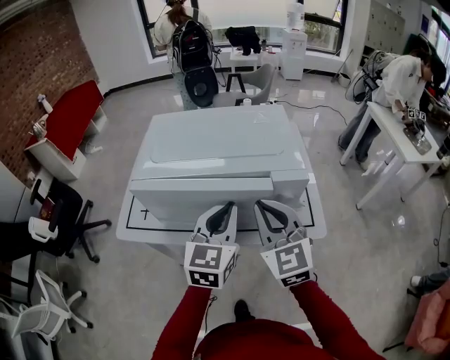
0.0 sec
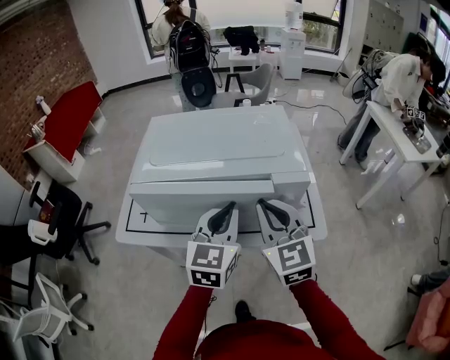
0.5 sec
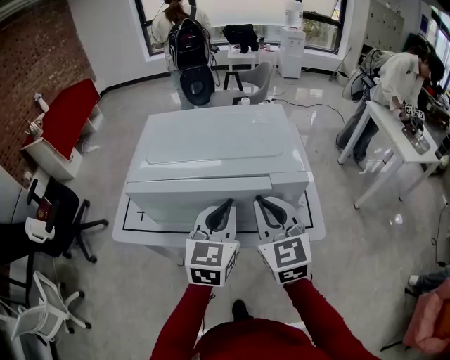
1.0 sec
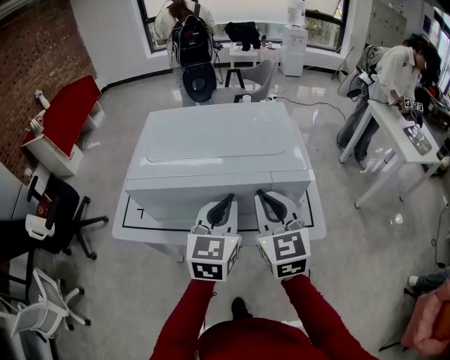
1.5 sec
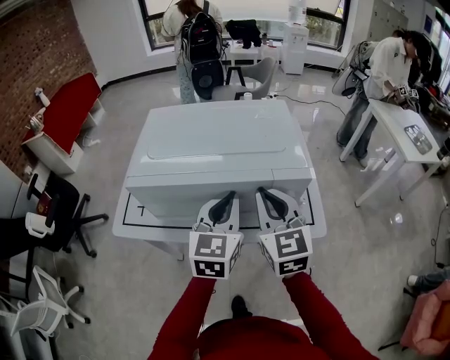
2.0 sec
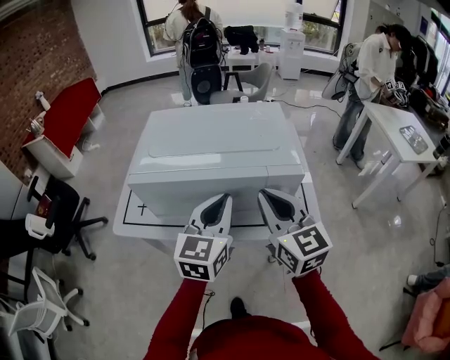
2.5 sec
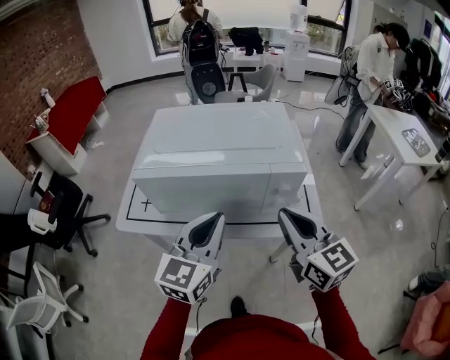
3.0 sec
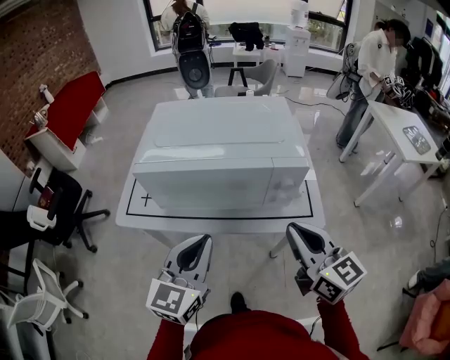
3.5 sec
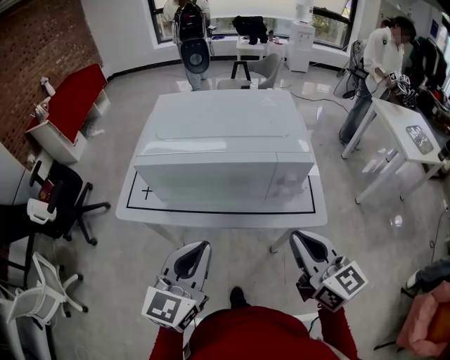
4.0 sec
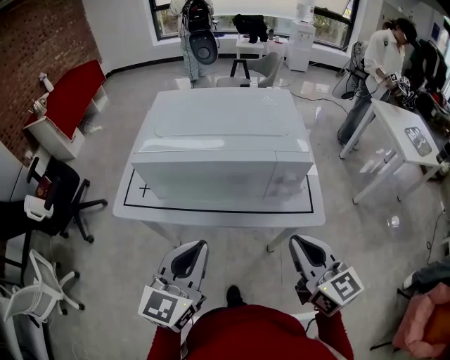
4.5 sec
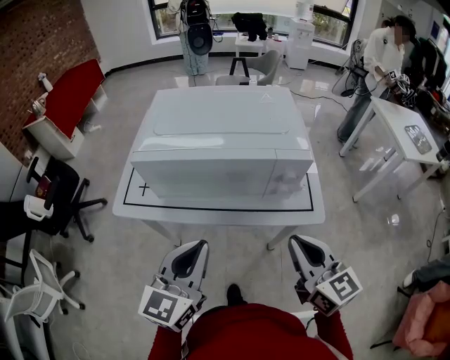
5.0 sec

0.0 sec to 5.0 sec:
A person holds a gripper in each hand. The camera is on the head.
0.0 sec to 2.5 sec: The grippers make only small movements.
2.5 sec to 5.0 sec: The left gripper goes approximately 15 cm backward and to the left. The right gripper is displaced backward by about 15 cm.

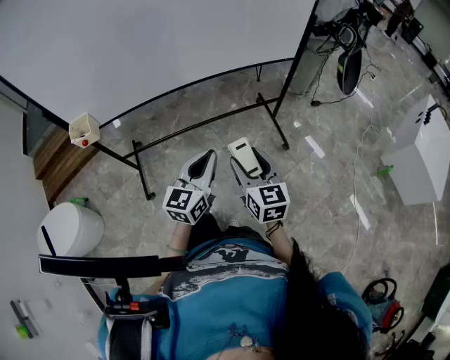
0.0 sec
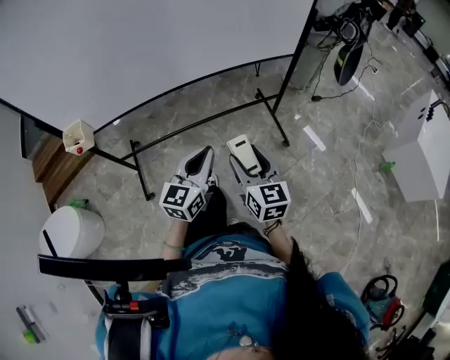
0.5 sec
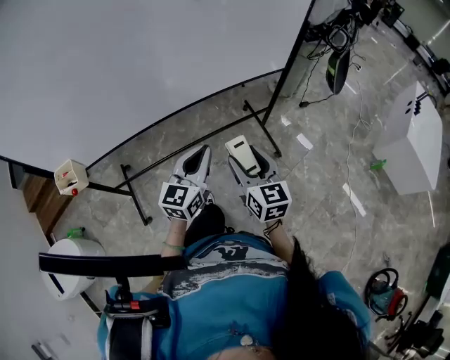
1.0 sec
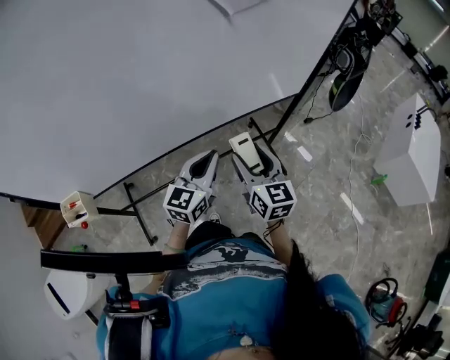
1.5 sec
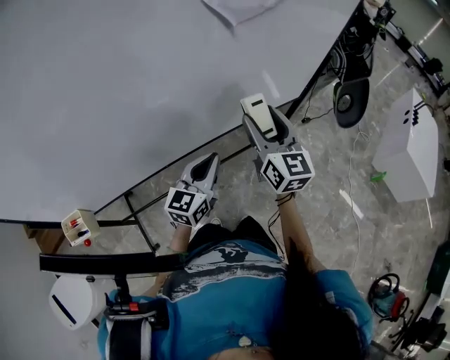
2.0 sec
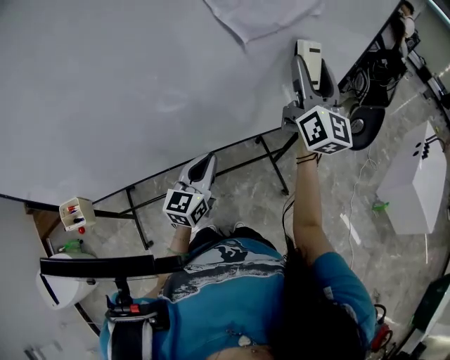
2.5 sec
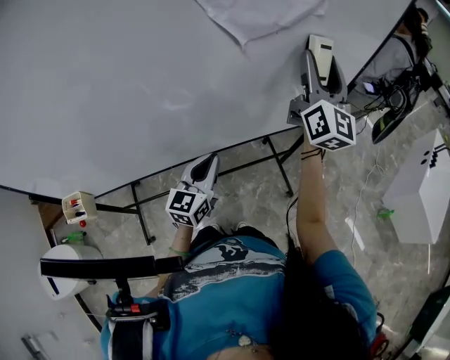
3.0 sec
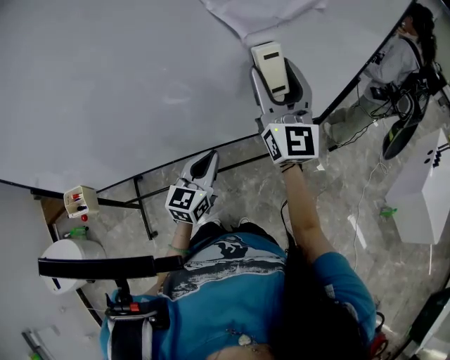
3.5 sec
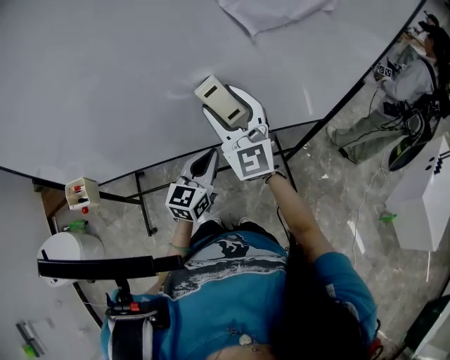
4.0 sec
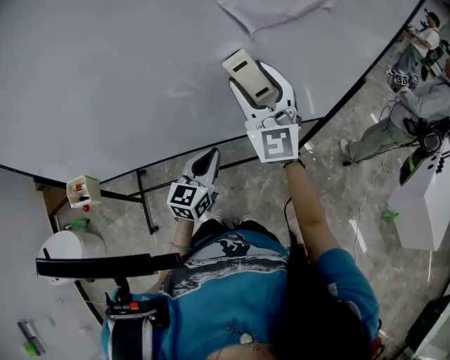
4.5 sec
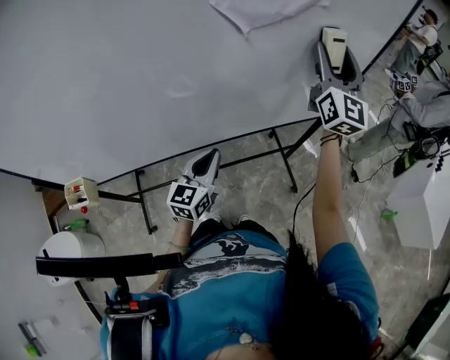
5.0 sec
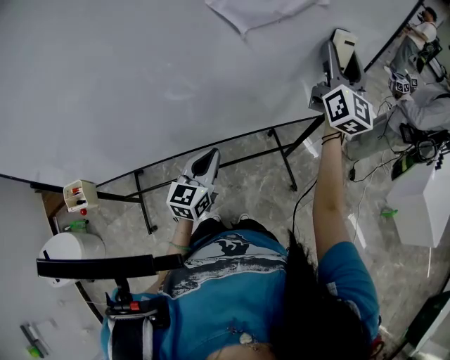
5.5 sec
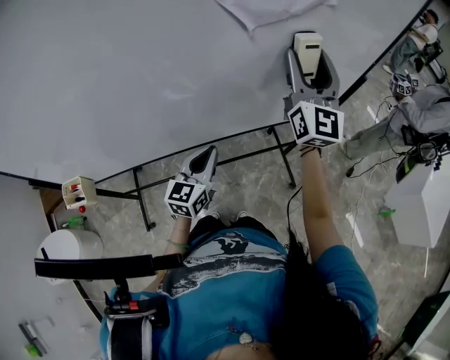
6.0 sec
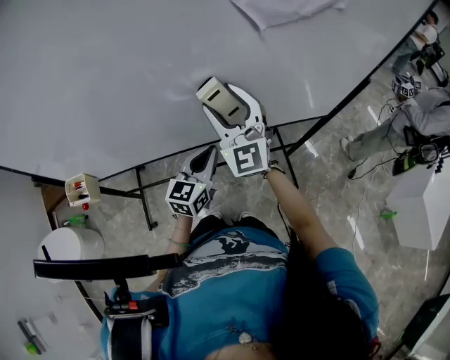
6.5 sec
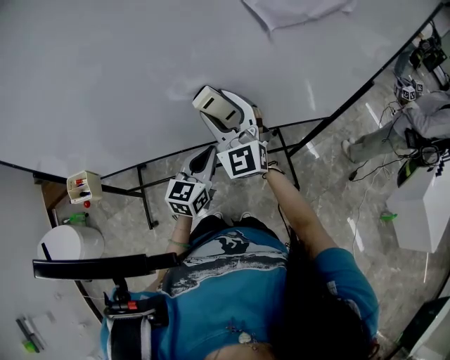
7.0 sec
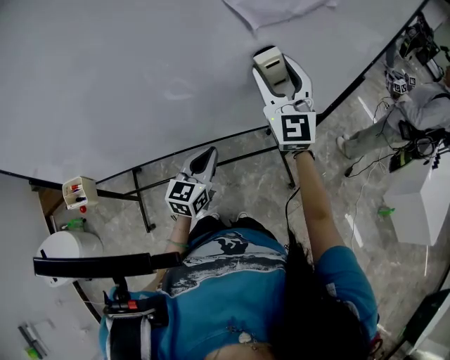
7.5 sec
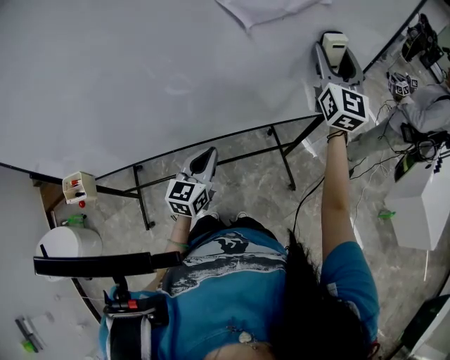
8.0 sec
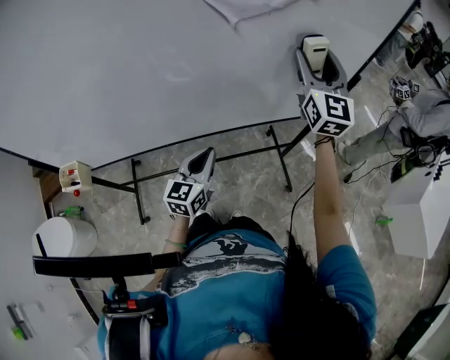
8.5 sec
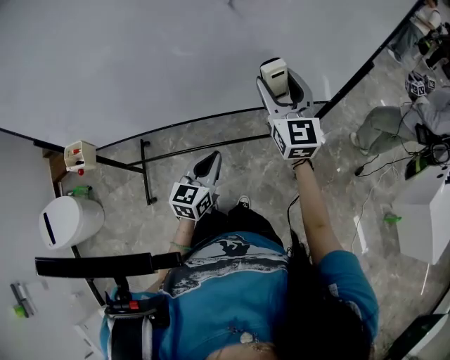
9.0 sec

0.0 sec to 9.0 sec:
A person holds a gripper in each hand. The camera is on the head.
0.0 sec to 2.0 sec: Both grippers travel together forward, approximately 35 cm.
2.0 sec to 4.5 sec: The right gripper swings left and right, approximately 25 cm each way, with 2 reversals, and rotates approximately 40 degrees.
4.5 sec to 7.0 sec: The right gripper is displaced downward by roughly 10 cm, and reaches approximately 25 cm to the right, then returns.
7.0 sec to 9.0 sec: The right gripper travels to the right by roughly 20 cm, and changes its angle by roughly 30 degrees. The left gripper heads backward and to the right, covering some 10 cm.

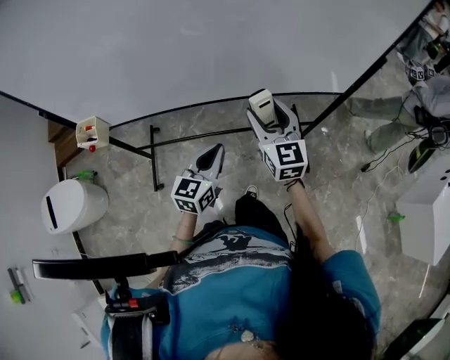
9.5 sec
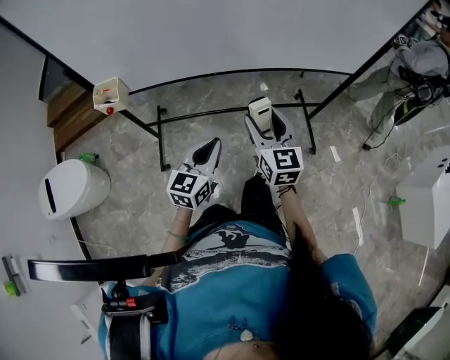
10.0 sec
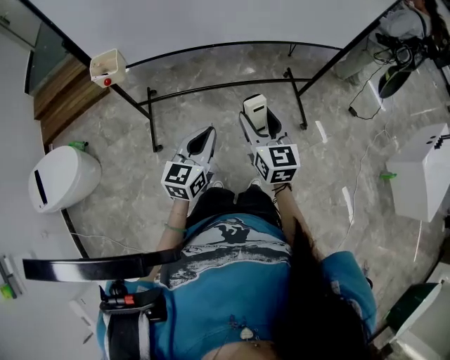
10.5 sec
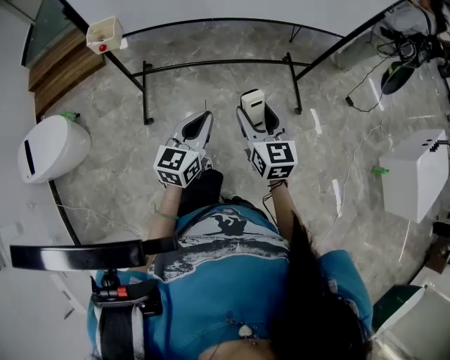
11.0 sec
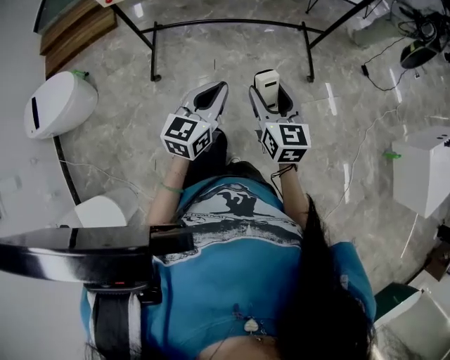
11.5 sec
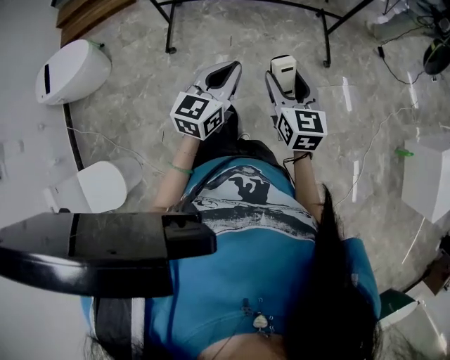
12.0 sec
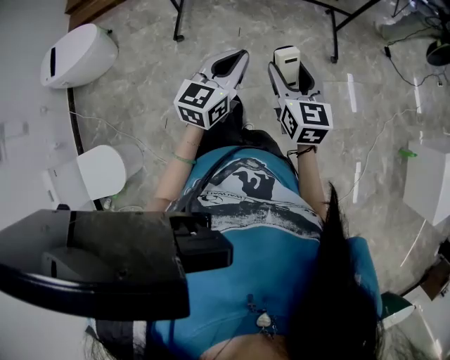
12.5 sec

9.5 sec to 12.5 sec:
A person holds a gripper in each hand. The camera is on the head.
9.5 sec to 11.0 sec: The right gripper travels backward by approximately 35 cm. The left gripper heads backward and to the left, covering some 30 cm.
11.0 sec to 12.5 sec: Both grippers travel together backward, roughly 25 cm.

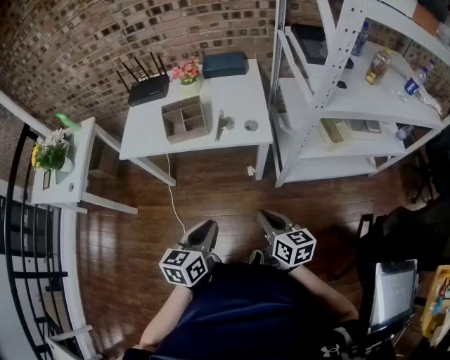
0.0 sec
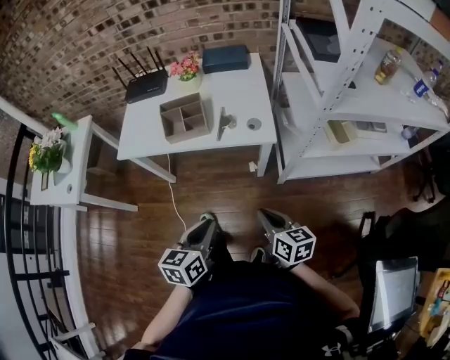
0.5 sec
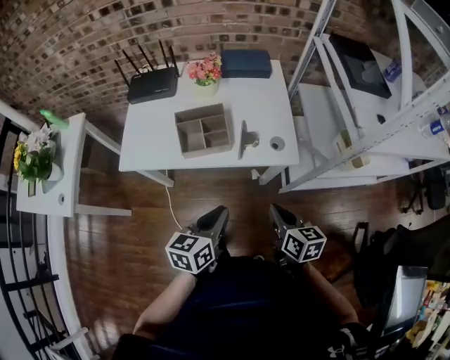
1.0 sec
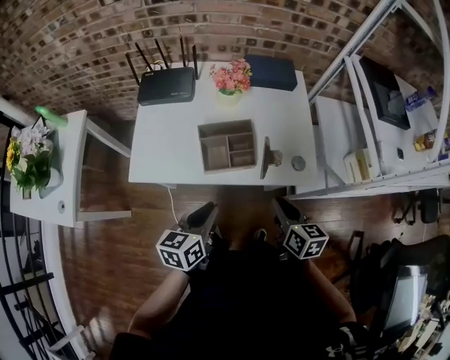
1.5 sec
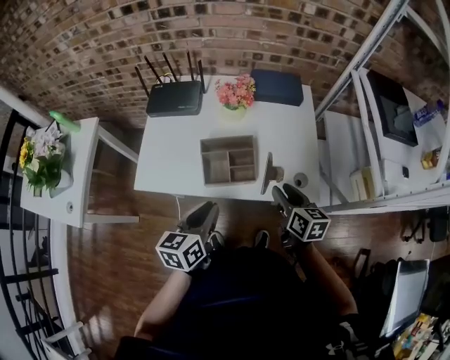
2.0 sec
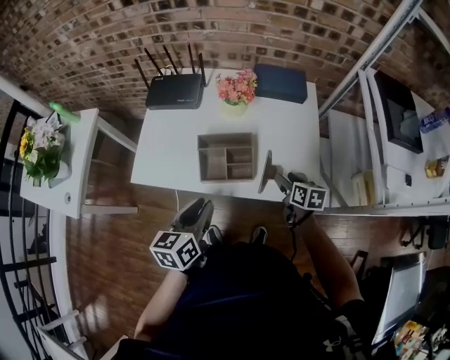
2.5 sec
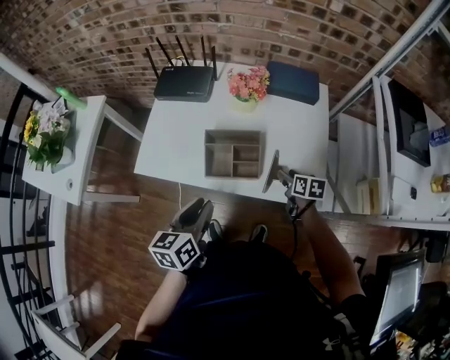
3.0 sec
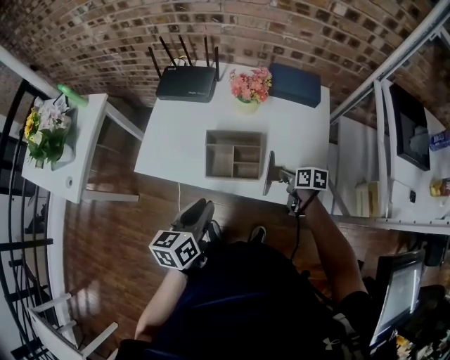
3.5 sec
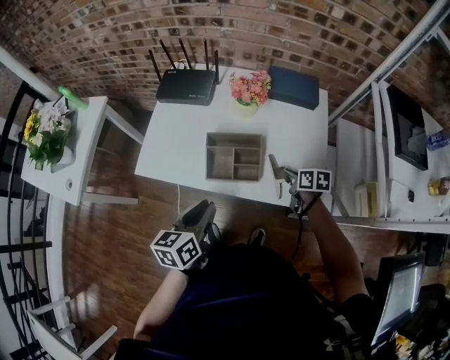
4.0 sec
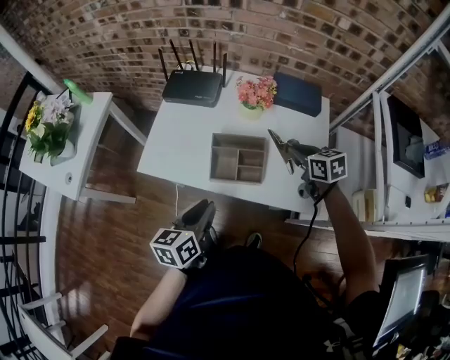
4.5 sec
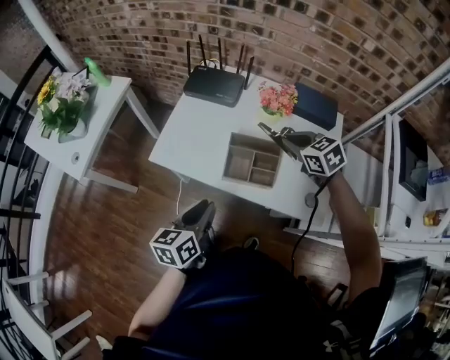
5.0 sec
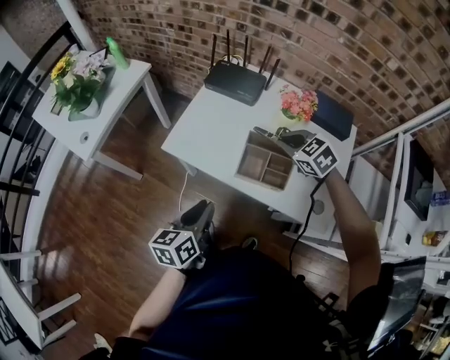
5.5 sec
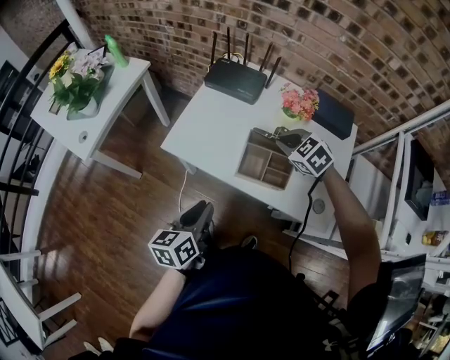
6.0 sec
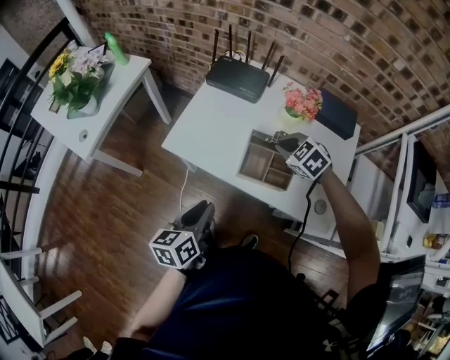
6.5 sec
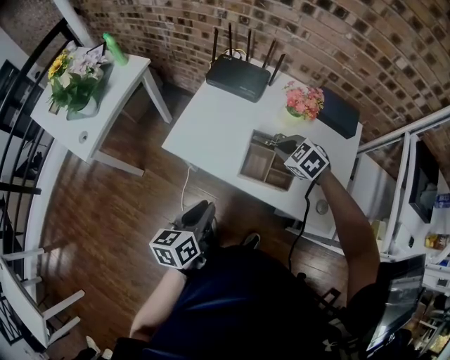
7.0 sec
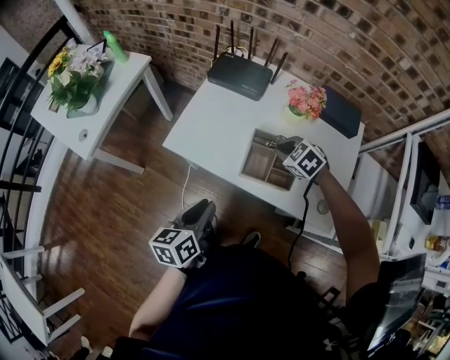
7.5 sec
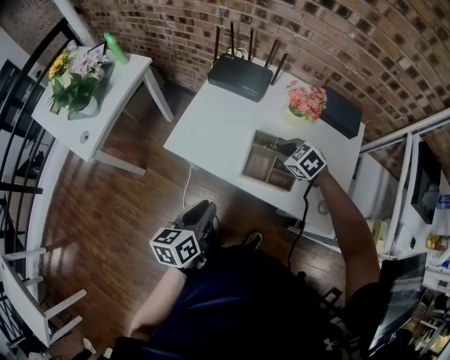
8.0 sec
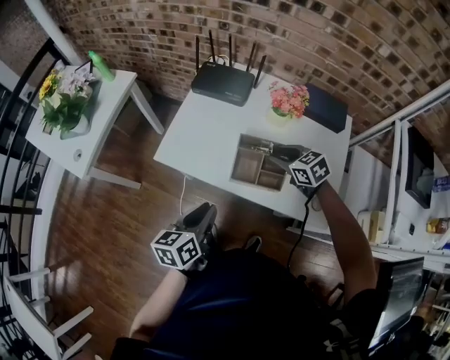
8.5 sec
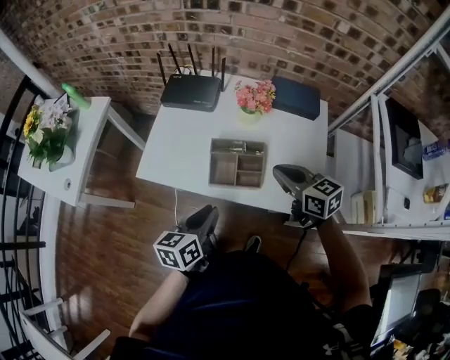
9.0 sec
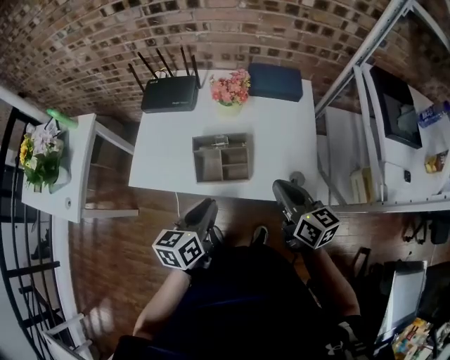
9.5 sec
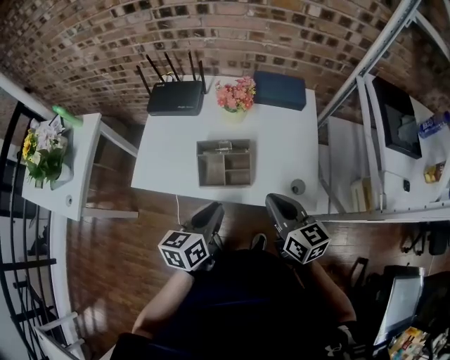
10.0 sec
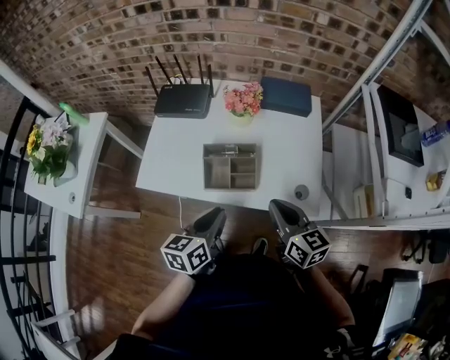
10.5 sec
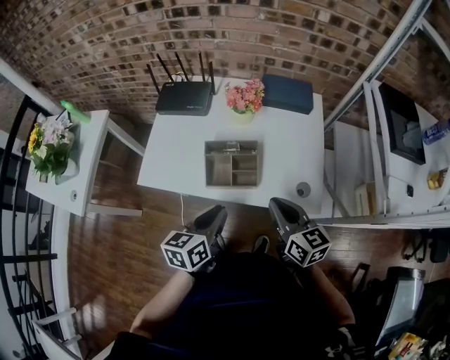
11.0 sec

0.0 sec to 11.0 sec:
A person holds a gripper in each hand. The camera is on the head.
0.0 sec to 2.0 sec: The left gripper is displaced forward and to the left by approximately 35 cm. Meanwhile the right gripper shifts about 35 cm forward, and opens.
2.0 sec to 3.5 sec: The right gripper shifts some 20 cm downward and forward, rotates approximately 30 degrees, and closes.
3.5 sec to 5.5 sec: The right gripper travels upward, to the left and forward by approximately 30 cm, and rotates around the line of its fingers by about 70 degrees, counterclockwise from behind; the left gripper moves to the left, approximately 10 cm.
5.5 sec to 7.5 sec: The right gripper travels downward by approximately 10 cm.
7.5 sec to 9.0 sec: The right gripper heads upward, backward and to the right, covering about 20 cm, tilts its fingers some 40 degrees upward, and opens, then closes once more. Meanwhile the left gripper goes about 10 cm to the right.
9.0 sec to 11.0 sec: The left gripper shifts by about 5 cm. Meanwhile the right gripper moves backward, about 10 cm, and rotates some 20 degrees.
